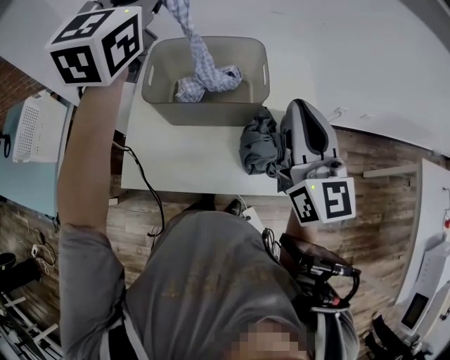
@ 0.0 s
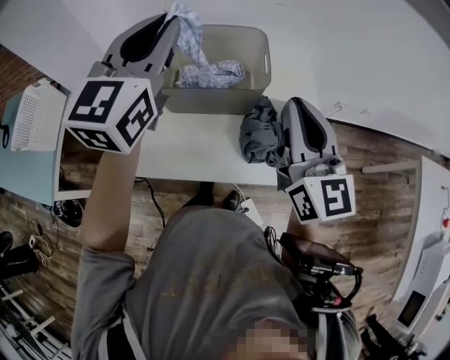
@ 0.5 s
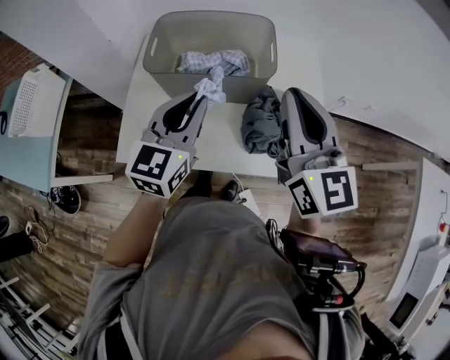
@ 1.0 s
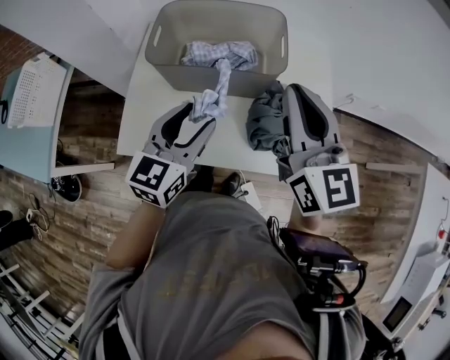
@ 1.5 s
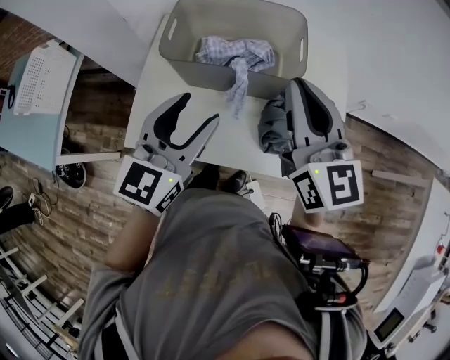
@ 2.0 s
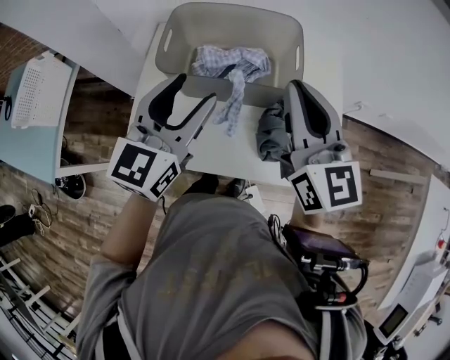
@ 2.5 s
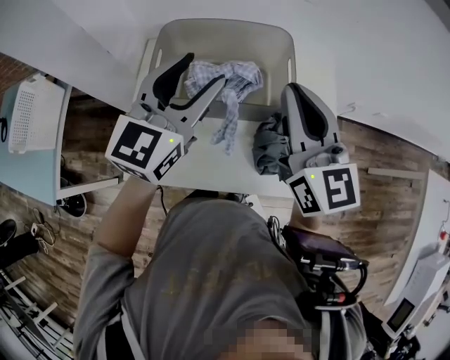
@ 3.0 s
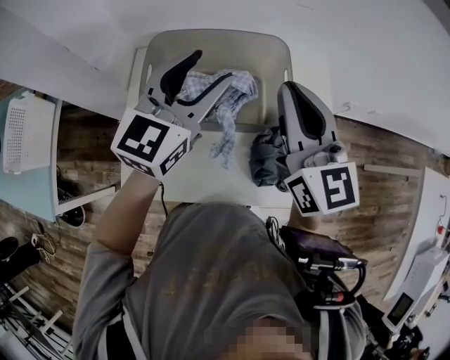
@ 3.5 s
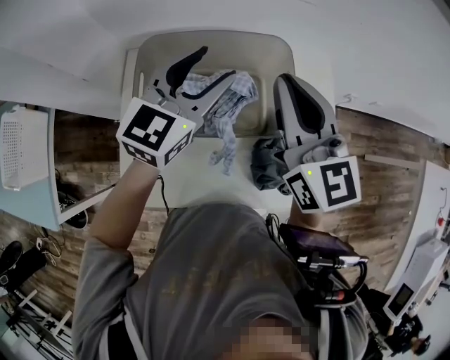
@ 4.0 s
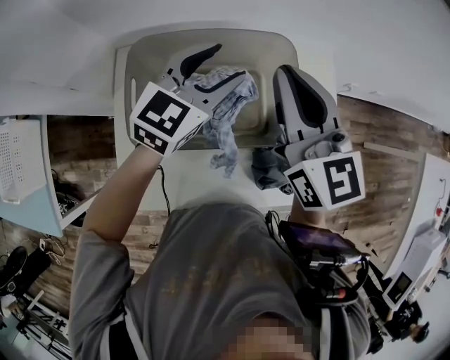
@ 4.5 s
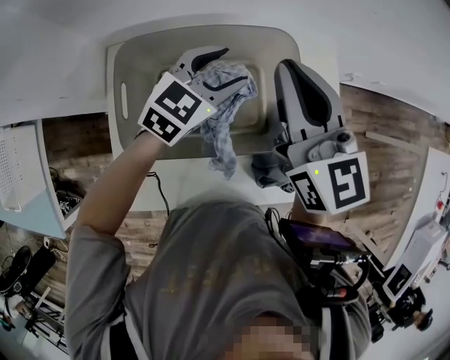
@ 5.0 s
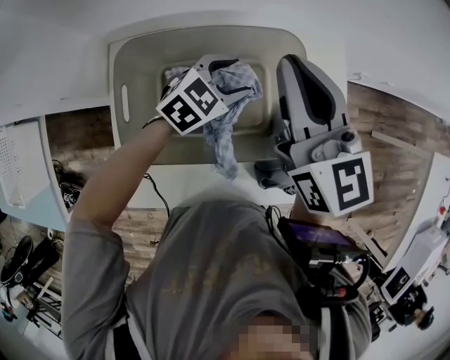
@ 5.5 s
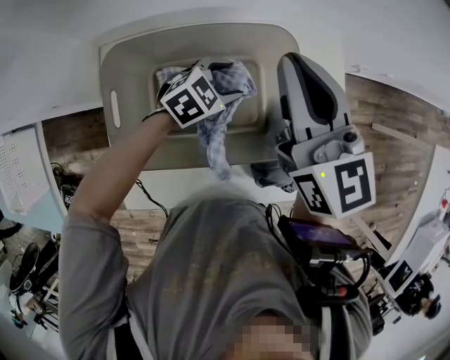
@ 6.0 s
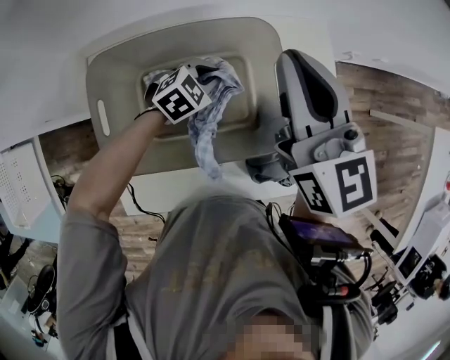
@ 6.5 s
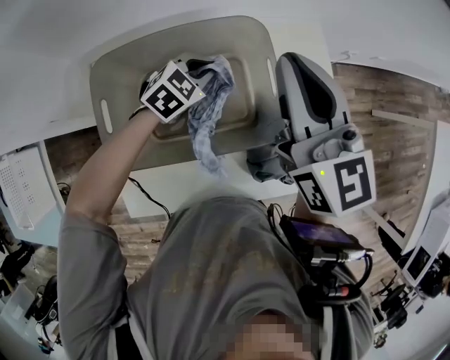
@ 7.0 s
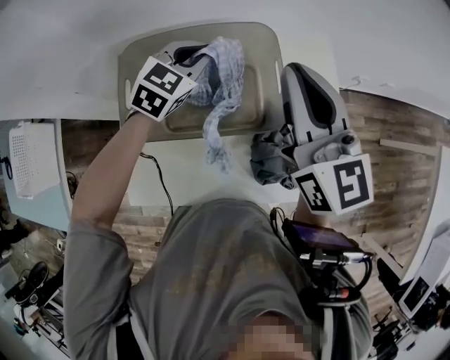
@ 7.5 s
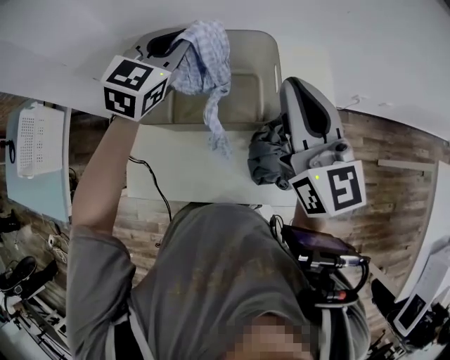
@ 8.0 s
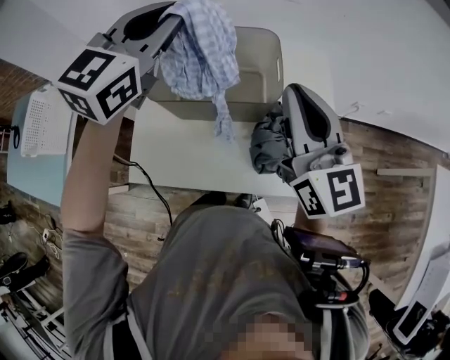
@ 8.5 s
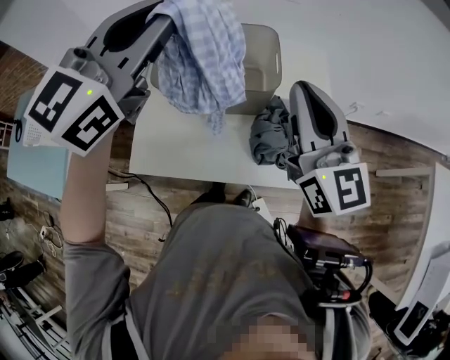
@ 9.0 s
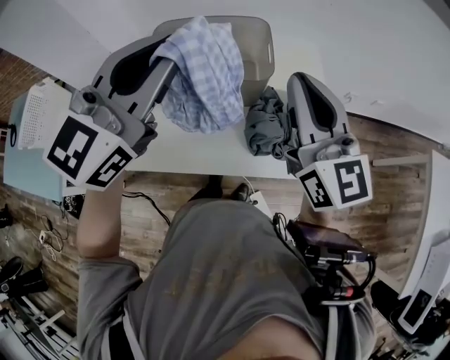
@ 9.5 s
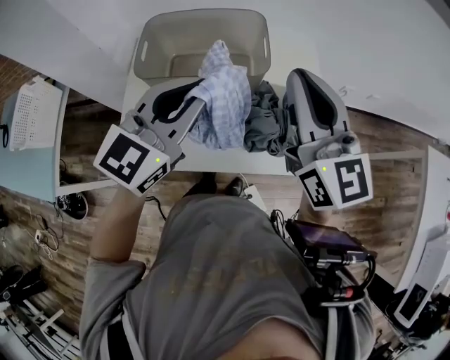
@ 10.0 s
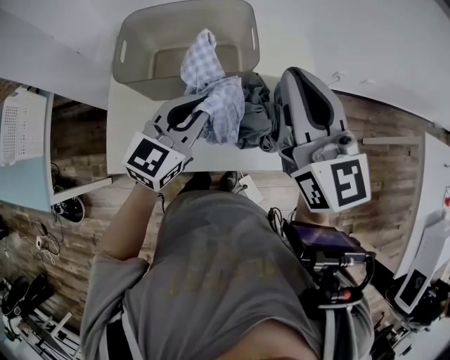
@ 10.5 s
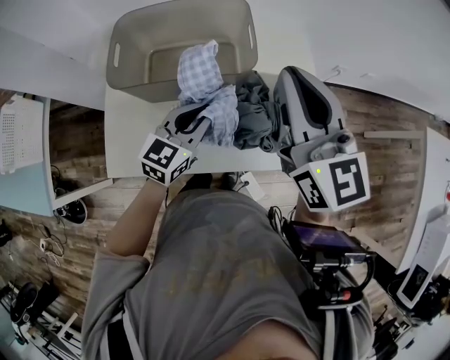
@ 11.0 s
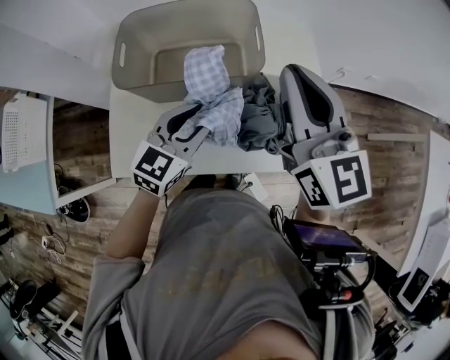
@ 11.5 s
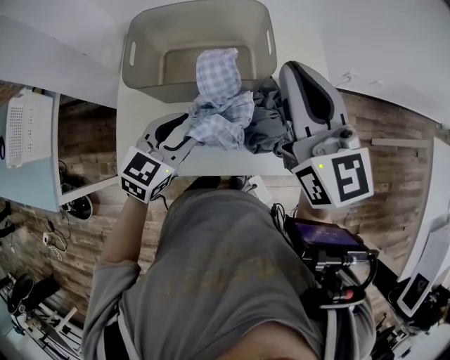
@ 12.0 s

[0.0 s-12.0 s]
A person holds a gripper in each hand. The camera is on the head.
0.0 to 2.0 s: The right gripper shifts approximately 5 cm to the left. Meanwhile the left gripper moves downward and backward, roughly 30 cm, changes its angle by roughly 20 degrees, and opens its fingers.
2.0 to 4.0 s: The right gripper moves forward, approximately 15 cm. Meanwhile the left gripper heads forward, covering about 20 cm.
4.0 to 6.0 s: The left gripper travels downward by about 25 cm, and points its fingers approximately 40 degrees further downward, while the right gripper goes approximately 10 cm forward.
6.0 to 8.0 s: The right gripper goes about 15 cm backward, to the right and upward, while the left gripper shifts about 25 cm upward, changes its angle by roughly 40 degrees, and closes up.
8.0 to 10.0 s: The left gripper shifts about 25 cm backward, while the right gripper goes roughly 10 cm backward.
10.0 to 12.0 s: The right gripper changes place by about 5 cm; the left gripper travels downward by approximately 20 cm, changes its angle by roughly 20 degrees, and opens up.

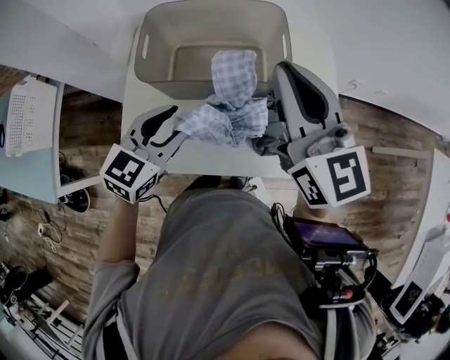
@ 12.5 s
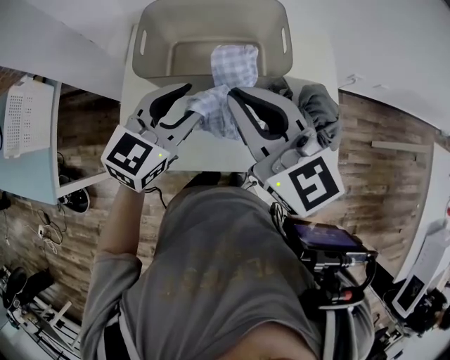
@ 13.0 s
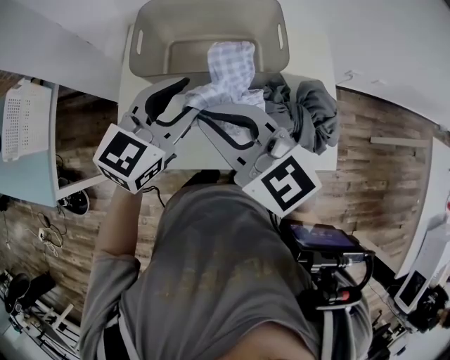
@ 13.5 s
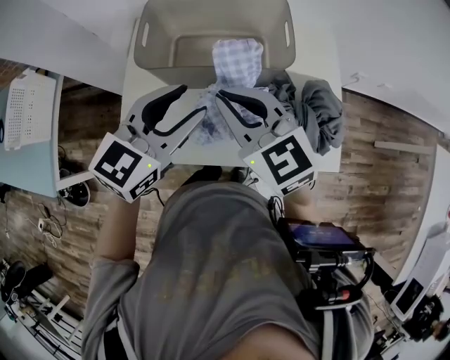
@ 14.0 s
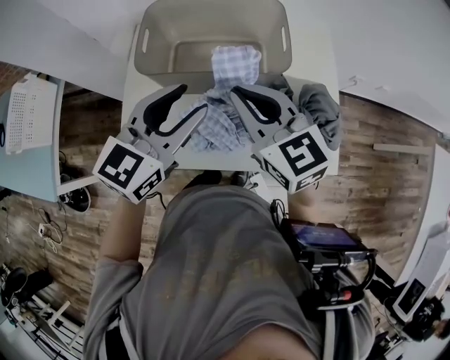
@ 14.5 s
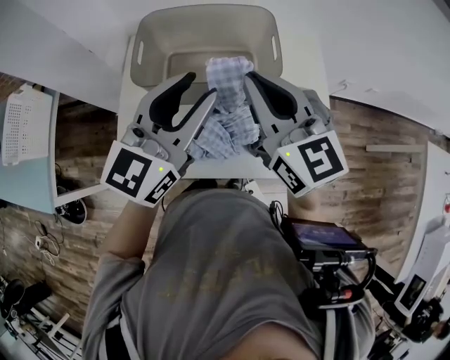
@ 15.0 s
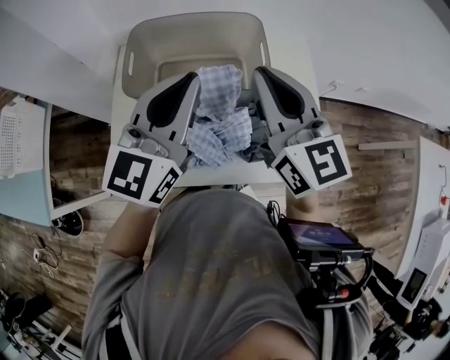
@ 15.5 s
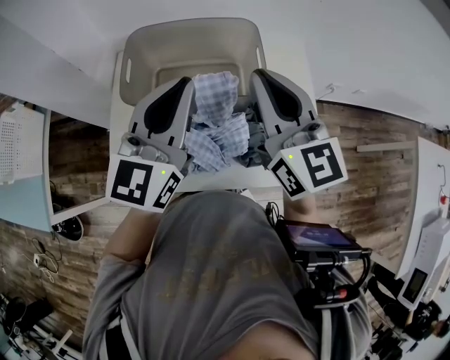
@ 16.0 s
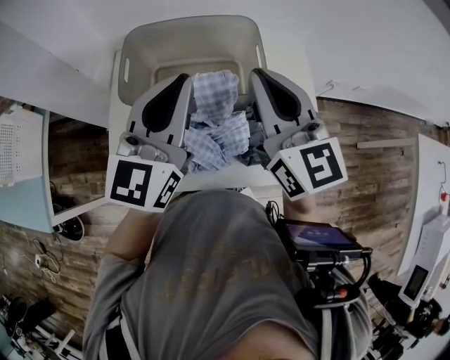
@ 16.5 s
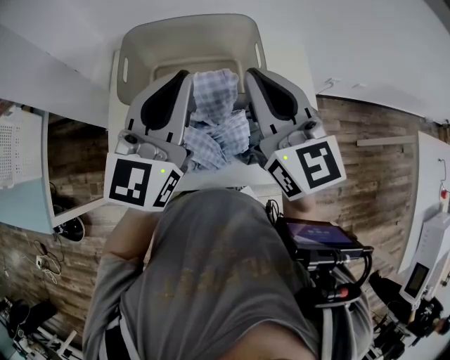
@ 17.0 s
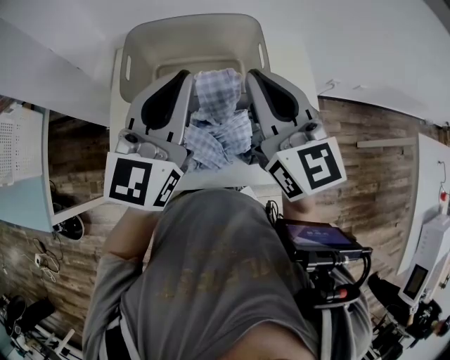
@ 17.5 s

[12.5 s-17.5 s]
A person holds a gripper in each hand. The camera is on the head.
12.5 to 15.0 s: The left gripper goes about 15 cm upward and to the right, and turns by some 30 degrees.
15.0 to 17.5 s: The left gripper closes its fingers.

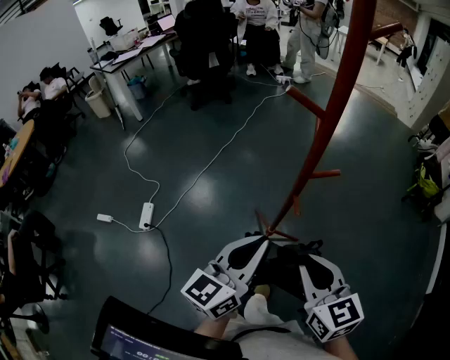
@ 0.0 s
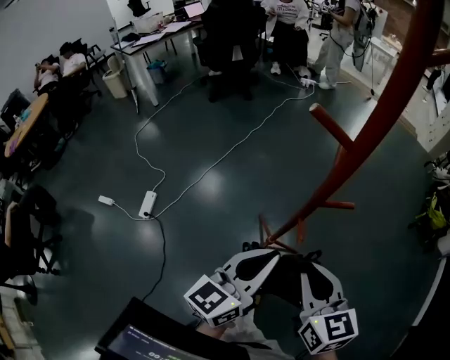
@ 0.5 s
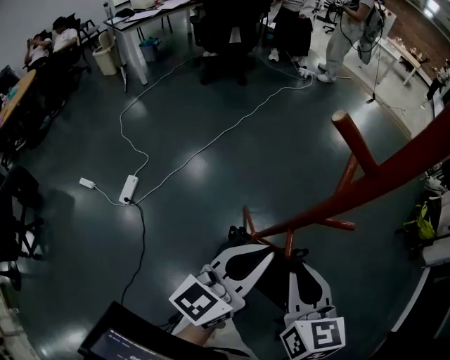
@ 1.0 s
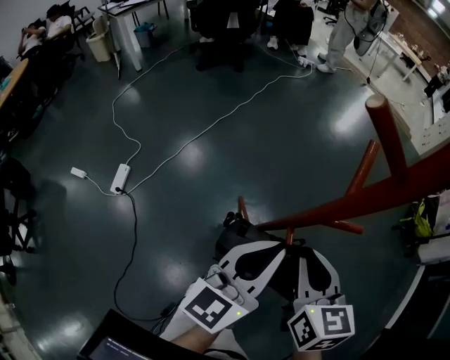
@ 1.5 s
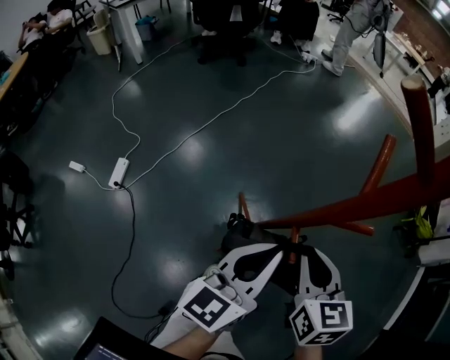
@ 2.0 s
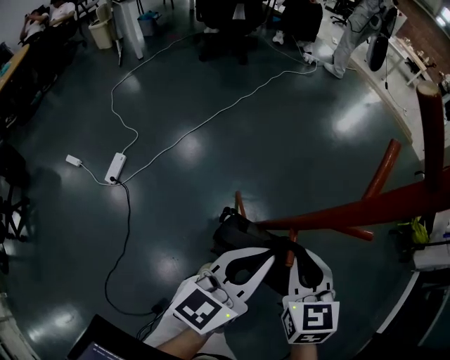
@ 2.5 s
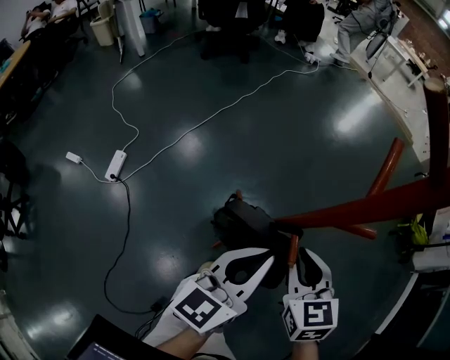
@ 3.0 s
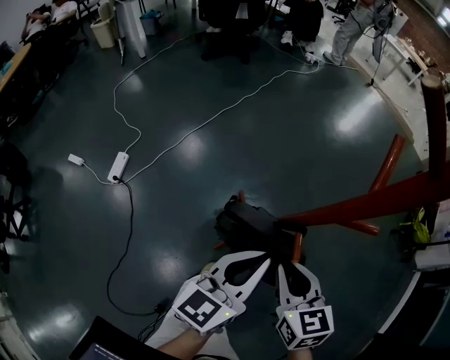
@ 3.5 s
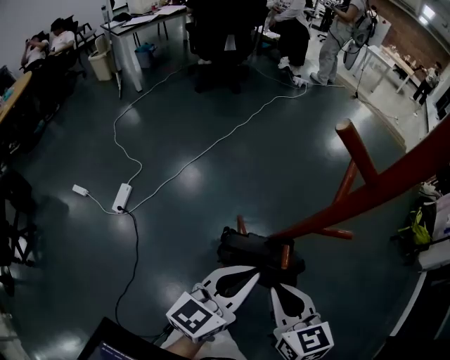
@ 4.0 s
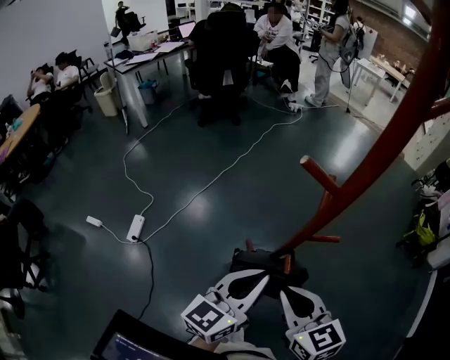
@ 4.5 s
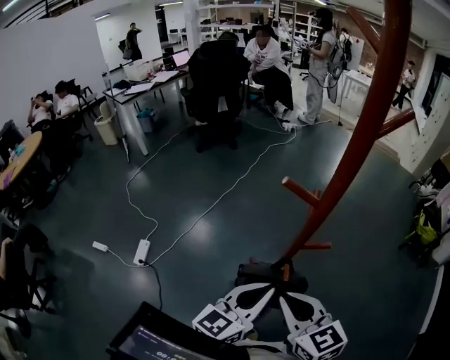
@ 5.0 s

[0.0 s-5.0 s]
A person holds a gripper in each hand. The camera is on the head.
0.0 to 2.5 s: The grippers both shift forward and downward by some 20 cm.
2.5 to 5.0 s: The left gripper heads upward and backward, covering some 10 cm; the right gripper moves upward and backward, roughly 20 cm, and changes its angle by approximately 20 degrees.

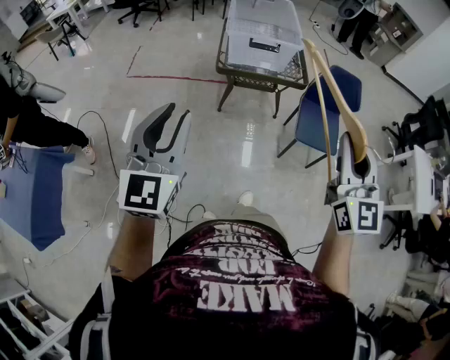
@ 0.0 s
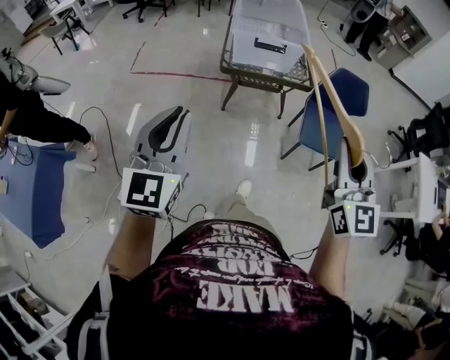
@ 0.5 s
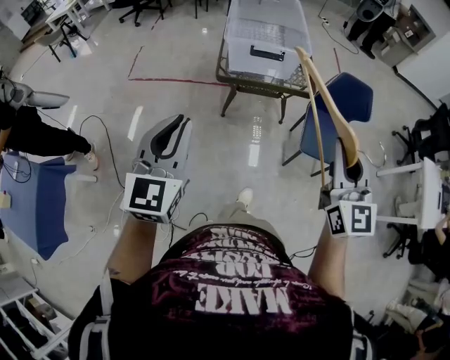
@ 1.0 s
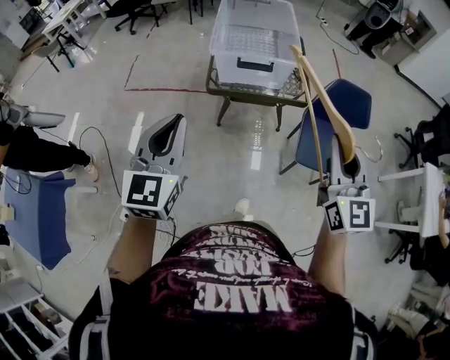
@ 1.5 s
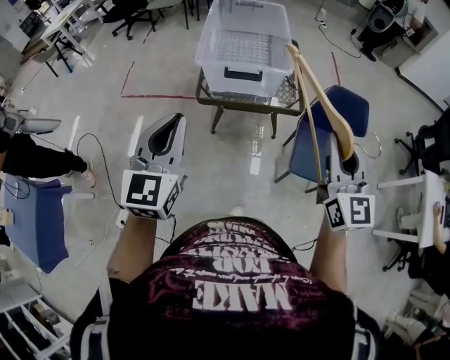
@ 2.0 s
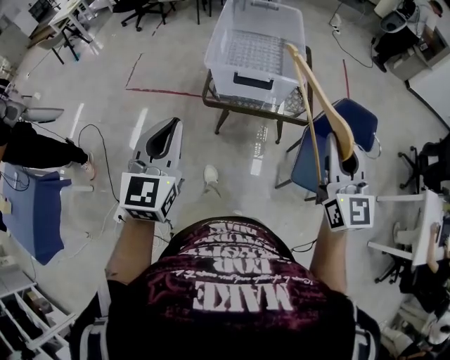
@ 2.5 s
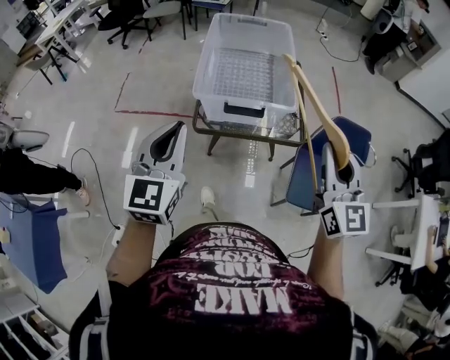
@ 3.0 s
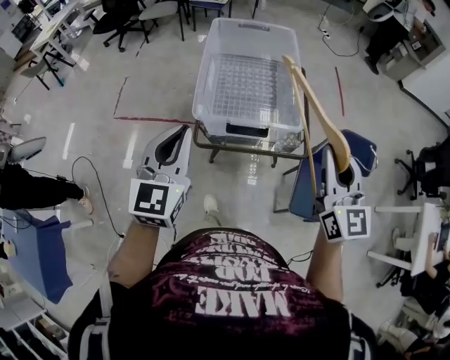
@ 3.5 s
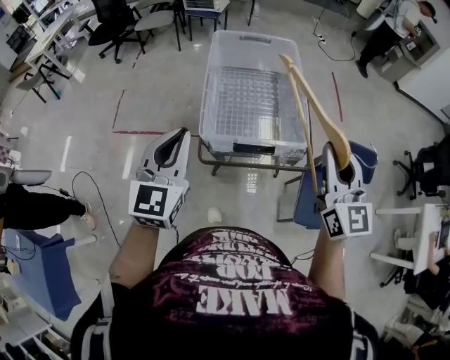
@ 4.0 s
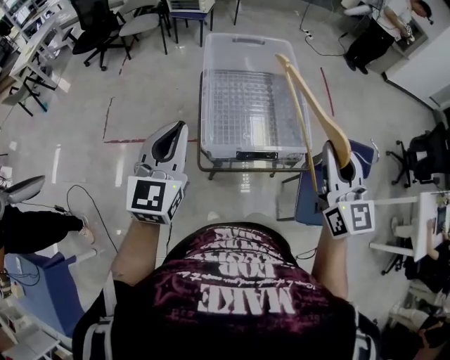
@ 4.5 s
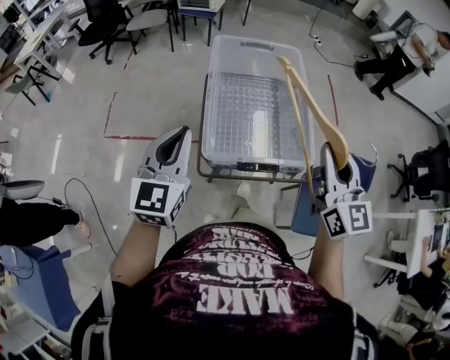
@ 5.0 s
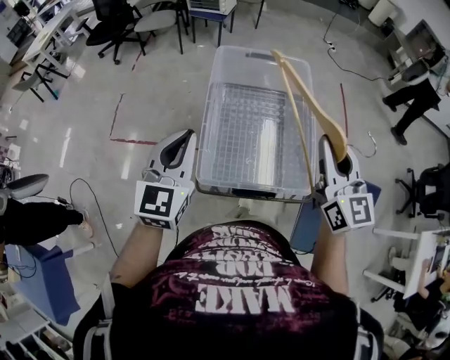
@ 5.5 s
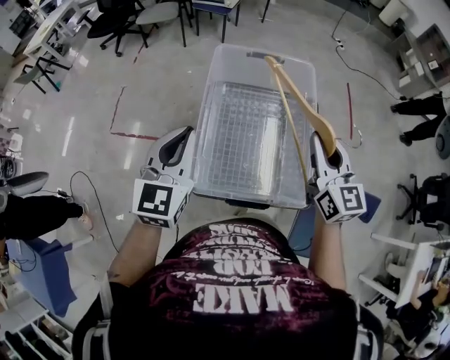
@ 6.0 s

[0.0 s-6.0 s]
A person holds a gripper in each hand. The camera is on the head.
0.0 to 2.0 s: Both grippers move forward and to the right, roughly 30 cm. The left gripper closes.
2.0 to 4.0 s: The grippers both shift forward by roughly 30 cm.
4.0 to 6.0 s: The two grippers go some 25 cm forward.
